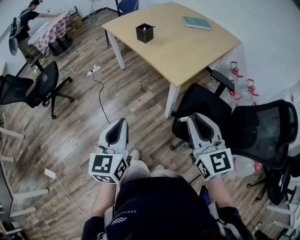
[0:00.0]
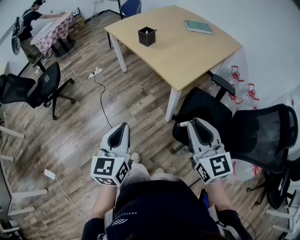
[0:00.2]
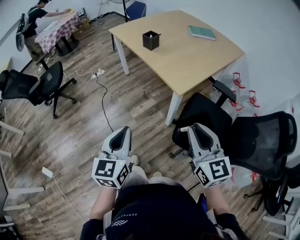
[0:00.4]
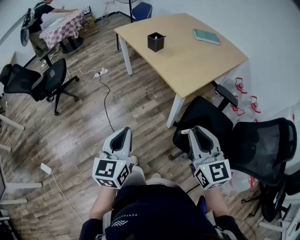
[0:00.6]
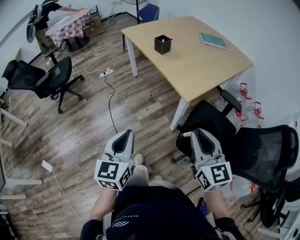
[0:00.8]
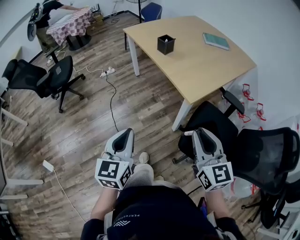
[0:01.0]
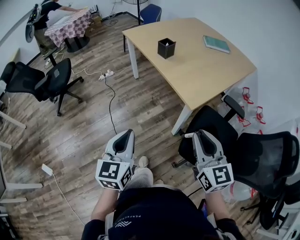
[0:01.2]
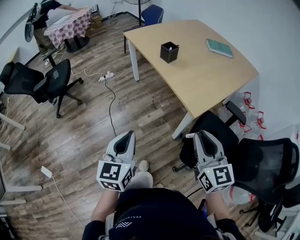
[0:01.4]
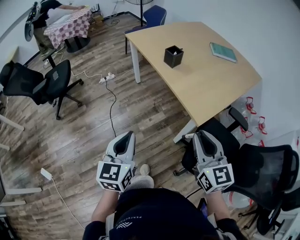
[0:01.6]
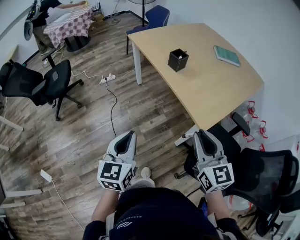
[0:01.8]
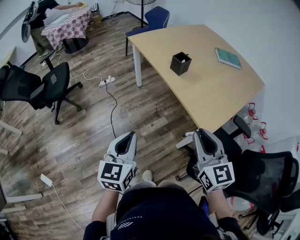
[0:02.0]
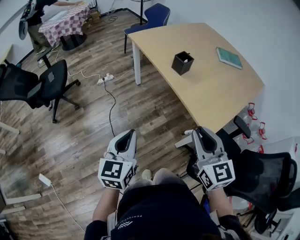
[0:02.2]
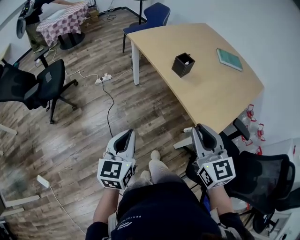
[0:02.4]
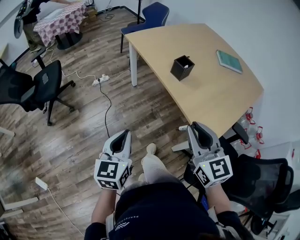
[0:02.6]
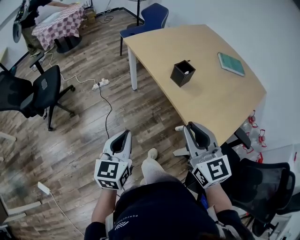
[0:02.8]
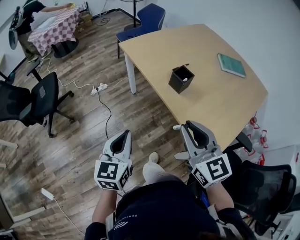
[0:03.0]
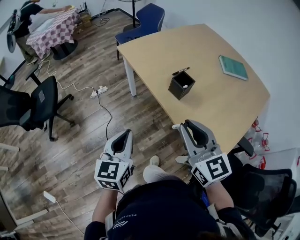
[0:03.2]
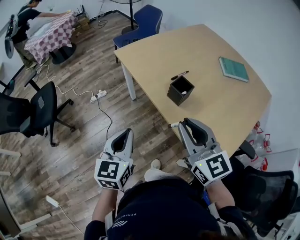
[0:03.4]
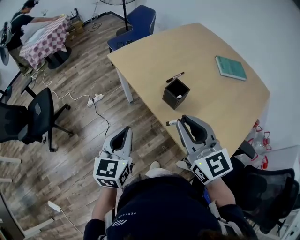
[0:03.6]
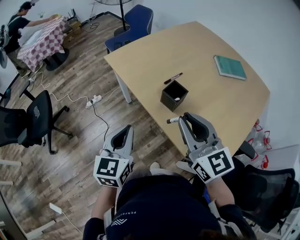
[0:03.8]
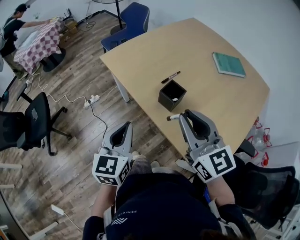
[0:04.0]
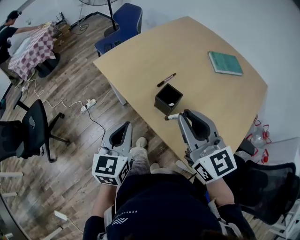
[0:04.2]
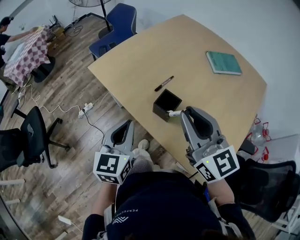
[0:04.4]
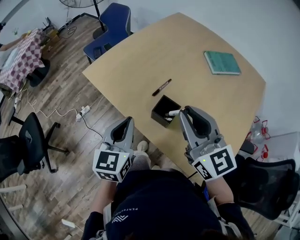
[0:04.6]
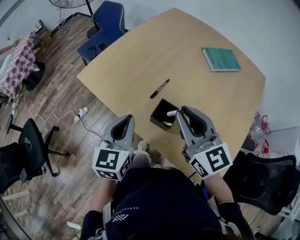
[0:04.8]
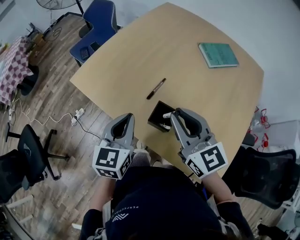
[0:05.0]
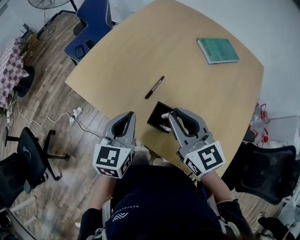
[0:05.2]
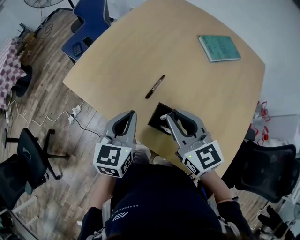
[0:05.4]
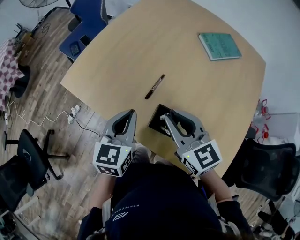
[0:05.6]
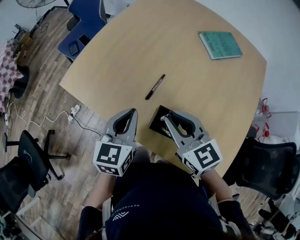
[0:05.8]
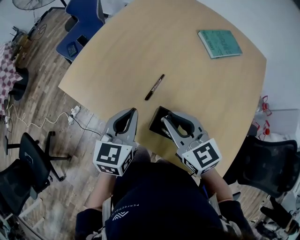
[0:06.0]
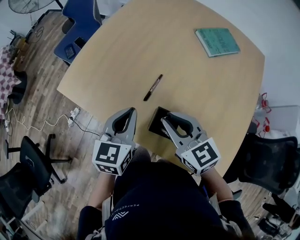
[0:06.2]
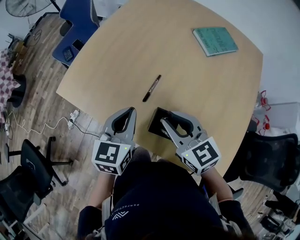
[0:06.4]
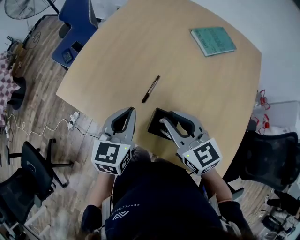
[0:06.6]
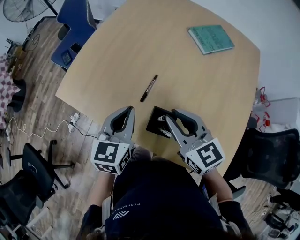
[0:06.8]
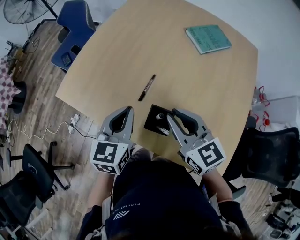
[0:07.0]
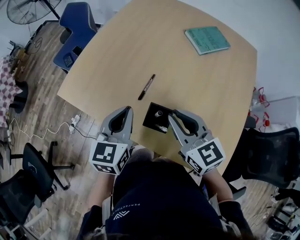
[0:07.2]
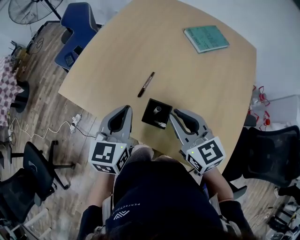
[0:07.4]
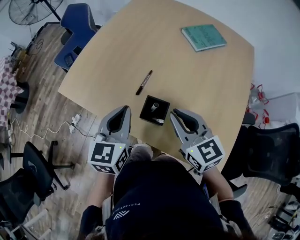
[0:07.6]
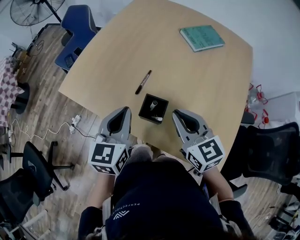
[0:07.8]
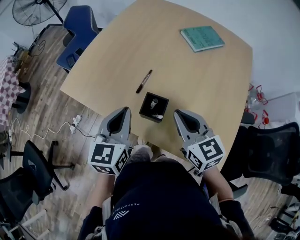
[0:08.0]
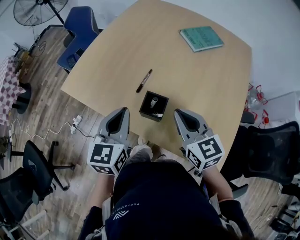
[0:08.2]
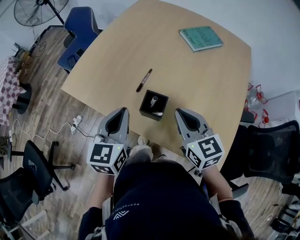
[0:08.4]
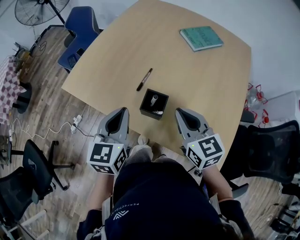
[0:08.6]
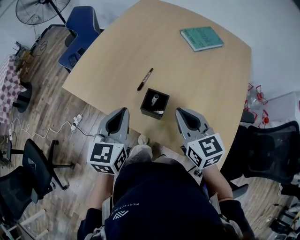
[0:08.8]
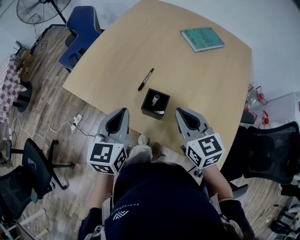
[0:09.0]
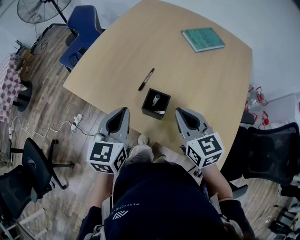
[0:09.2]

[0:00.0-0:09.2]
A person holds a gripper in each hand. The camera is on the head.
0:00.0 to 0:01.6: Both grippers travel together forward and to the left, some 15 cm.
0:01.6 to 0:03.0: The two grippers go some 25 cm forward.
0:03.0 to 0:04.6: Both grippers move forward, about 25 cm.
0:04.6 to 0:06.2: The right gripper moves downward and forward, about 15 cm, and rotates about 20 degrees, while the left gripper travels forward and downward by some 15 cm.
0:06.2 to 0:07.6: The left gripper moves roughly 5 cm; the right gripper travels to the right by about 5 cm.
0:07.6 to 0:09.2: There are only small adjustments of the grippers.

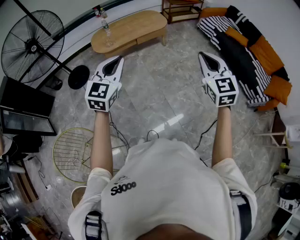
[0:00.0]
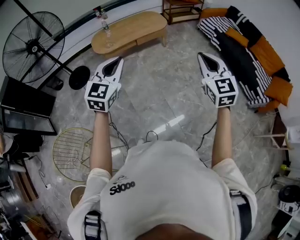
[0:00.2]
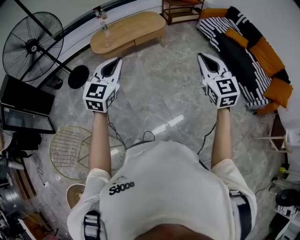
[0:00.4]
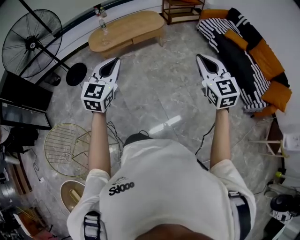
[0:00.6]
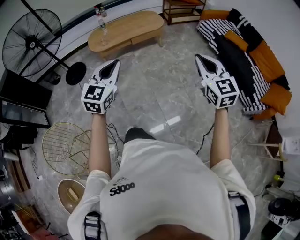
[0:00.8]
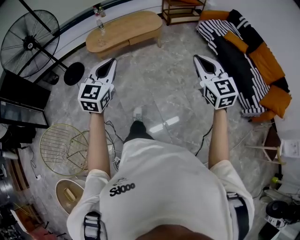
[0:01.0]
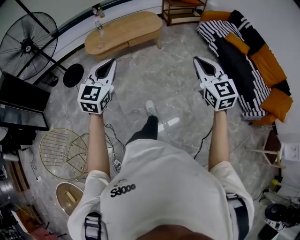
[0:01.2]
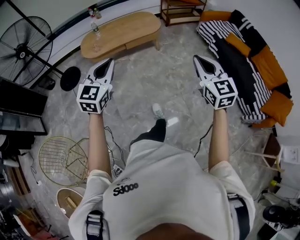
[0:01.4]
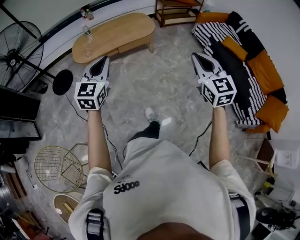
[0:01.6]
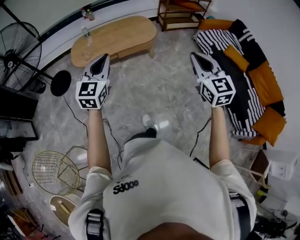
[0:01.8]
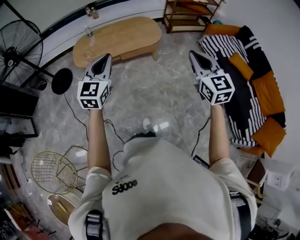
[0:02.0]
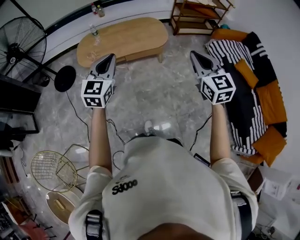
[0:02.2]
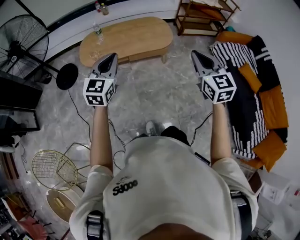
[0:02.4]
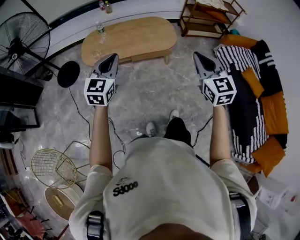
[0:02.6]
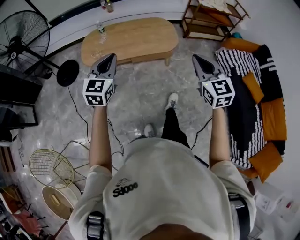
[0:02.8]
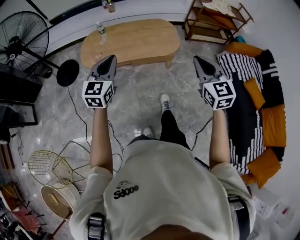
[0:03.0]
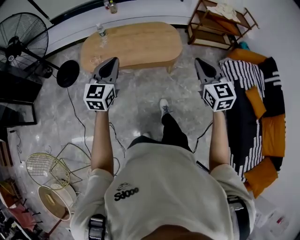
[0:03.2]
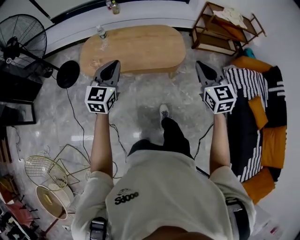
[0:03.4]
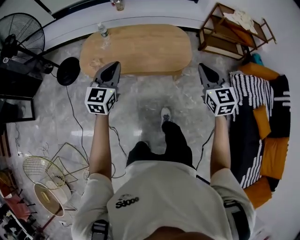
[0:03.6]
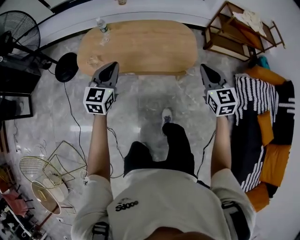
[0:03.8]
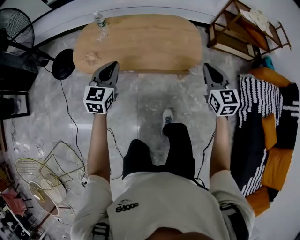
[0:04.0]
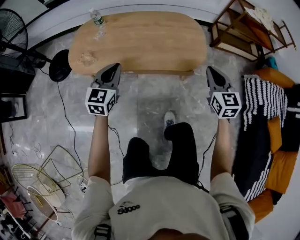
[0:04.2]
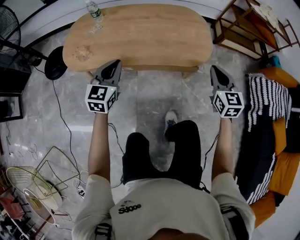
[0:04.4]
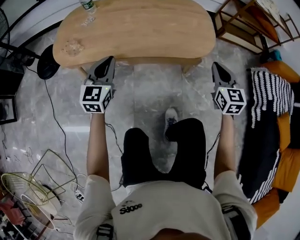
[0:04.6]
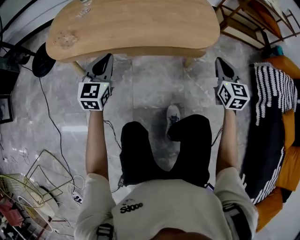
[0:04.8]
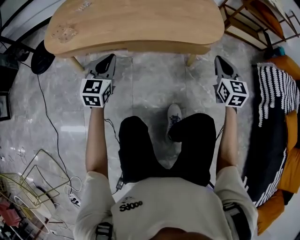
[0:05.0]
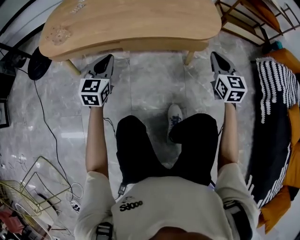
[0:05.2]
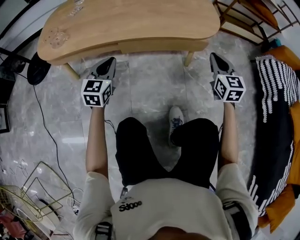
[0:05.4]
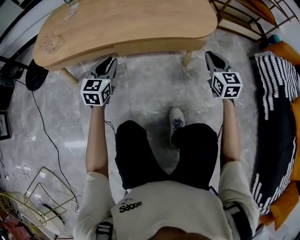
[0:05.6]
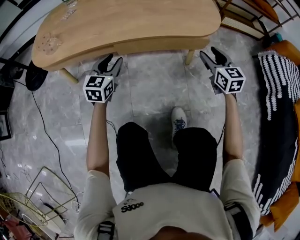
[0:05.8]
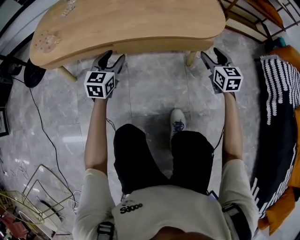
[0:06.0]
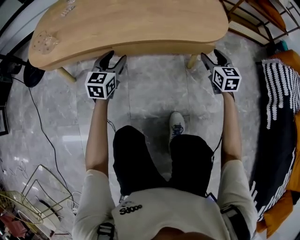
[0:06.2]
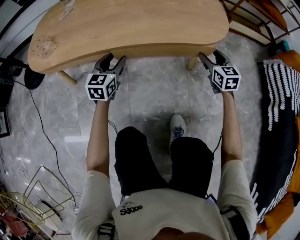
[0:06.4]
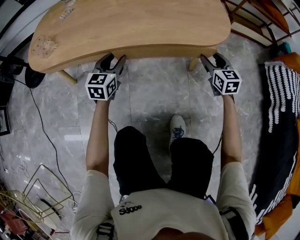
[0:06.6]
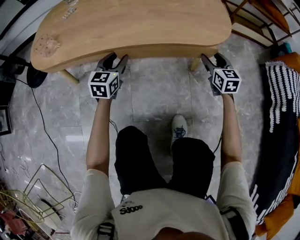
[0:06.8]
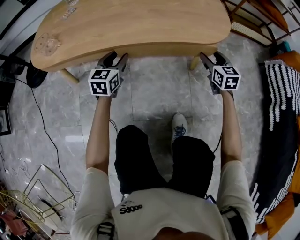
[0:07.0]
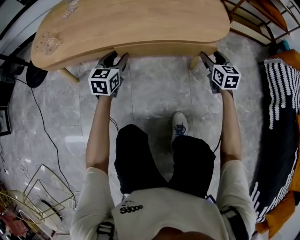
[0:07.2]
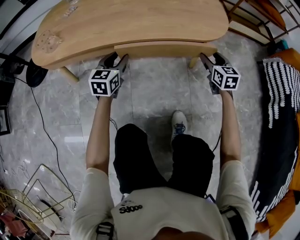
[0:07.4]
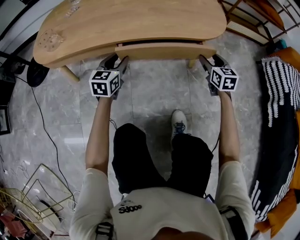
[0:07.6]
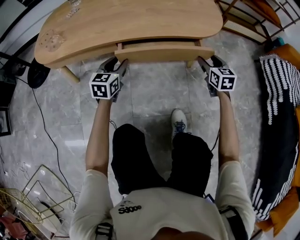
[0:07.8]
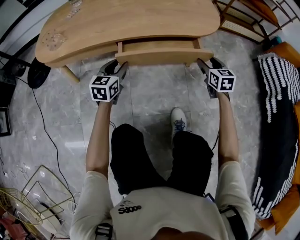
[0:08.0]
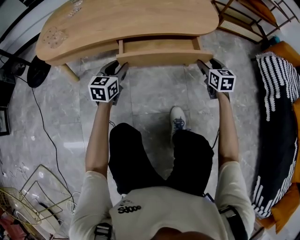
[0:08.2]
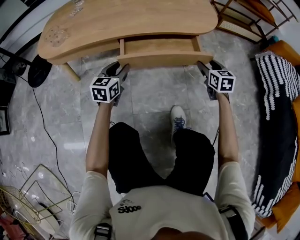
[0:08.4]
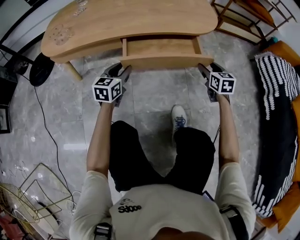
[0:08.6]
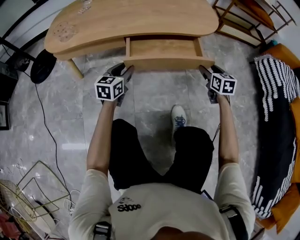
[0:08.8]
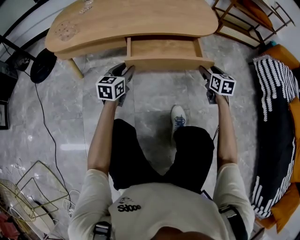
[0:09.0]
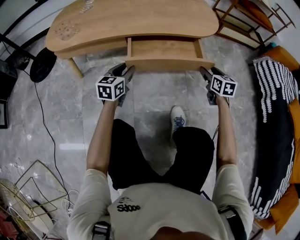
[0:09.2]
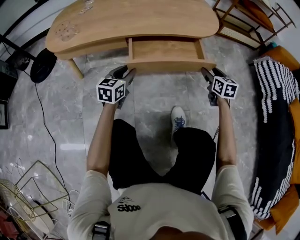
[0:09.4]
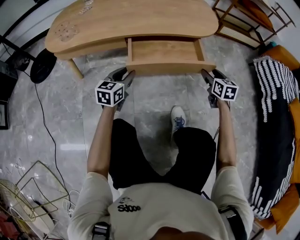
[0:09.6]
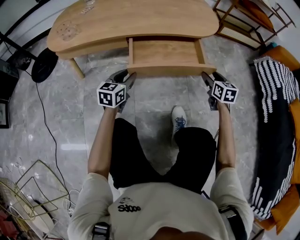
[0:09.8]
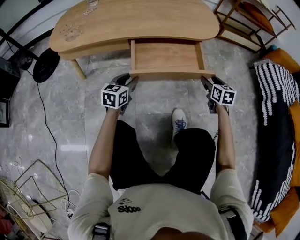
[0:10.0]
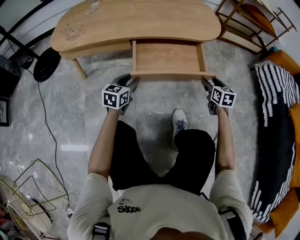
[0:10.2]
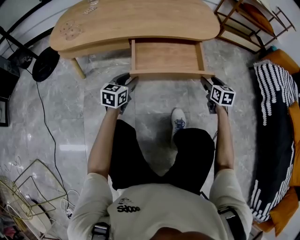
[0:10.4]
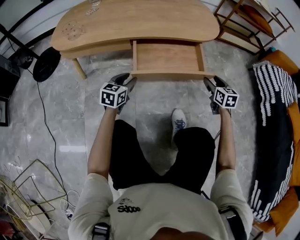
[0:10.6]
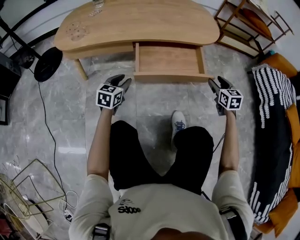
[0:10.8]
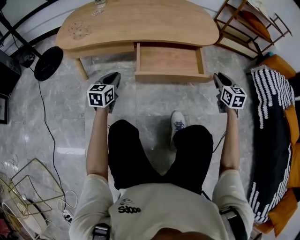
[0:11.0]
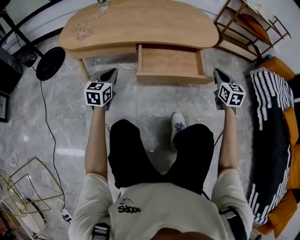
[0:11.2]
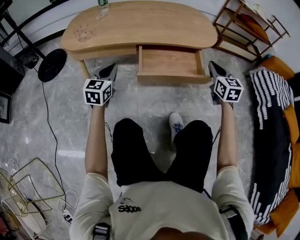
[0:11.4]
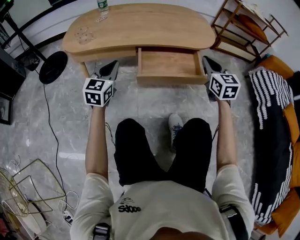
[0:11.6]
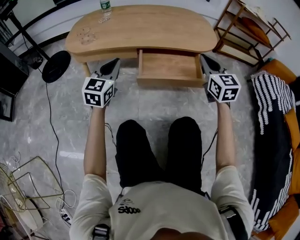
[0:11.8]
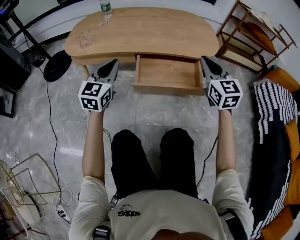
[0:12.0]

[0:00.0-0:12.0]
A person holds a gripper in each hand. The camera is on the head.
0:00.0 to 0:01.6: The two grippers go approximately 30 cm forward and to the right.
0:01.6 to 0:03.0: Both grippers move forward, approximately 35 cm.
0:03.0 to 0:04.4: Both grippers move downward and forward, some 50 cm.
0:04.4 to 0:06.0: Both grippers travel together downward, some 30 cm. The right gripper opens, while the left gripper opens its fingers.
0:06.0 to 0:07.6: The grippers stay close to where they were, moving slightly.
0:07.6 to 0:09.0: The two grippers go approximately 10 cm backward.
0:09.0 to 0:10.4: The grippers stay close to where they were, moving slightly.
0:10.4 to 0:12.0: The right gripper heads upward and to the left, covering about 30 cm, turns by about 30 degrees, and closes; the left gripper travels upward by about 25 cm, turns by some 30 degrees, and closes up.

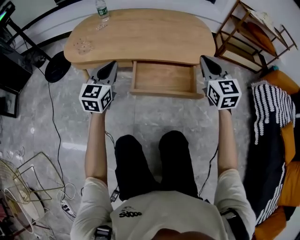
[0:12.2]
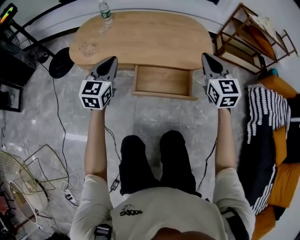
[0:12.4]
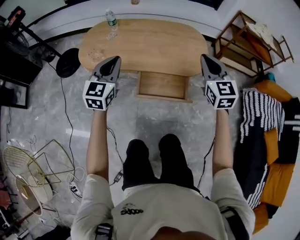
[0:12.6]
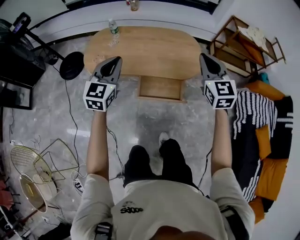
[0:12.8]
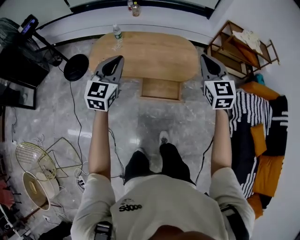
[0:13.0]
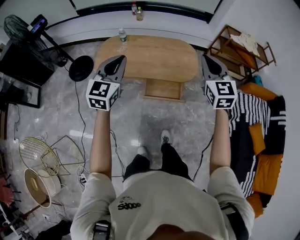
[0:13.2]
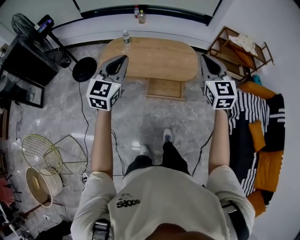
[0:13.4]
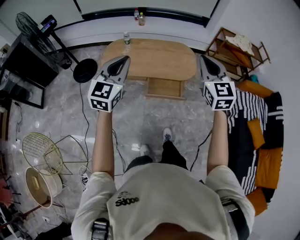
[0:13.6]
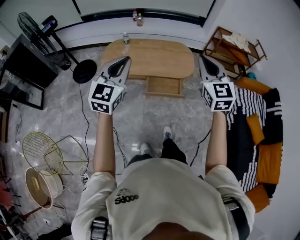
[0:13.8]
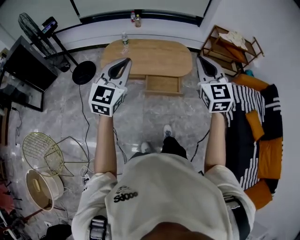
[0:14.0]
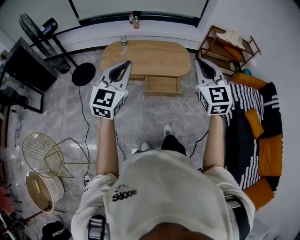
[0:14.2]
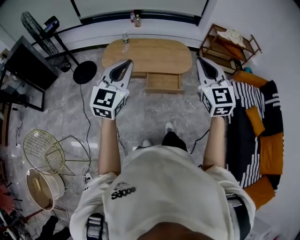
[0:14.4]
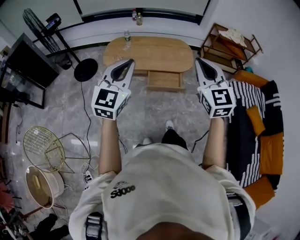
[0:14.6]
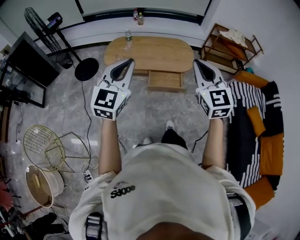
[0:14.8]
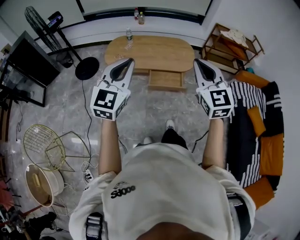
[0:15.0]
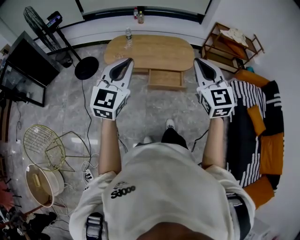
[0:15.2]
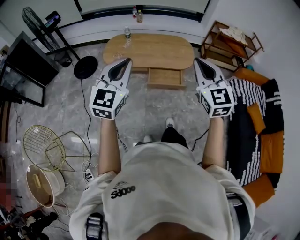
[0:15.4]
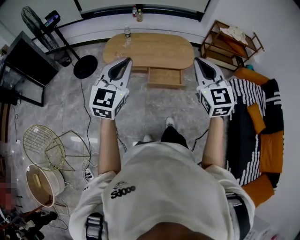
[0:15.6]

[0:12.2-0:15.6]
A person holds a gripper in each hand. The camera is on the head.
0:12.2 to 0:13.8: The grippers both shift upward by approximately 60 cm.
0:13.8 to 0:15.6: Both grippers travel together backward, some 15 cm.
